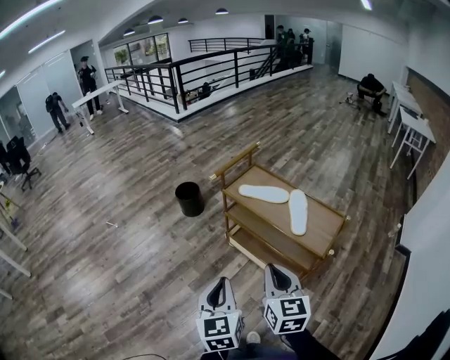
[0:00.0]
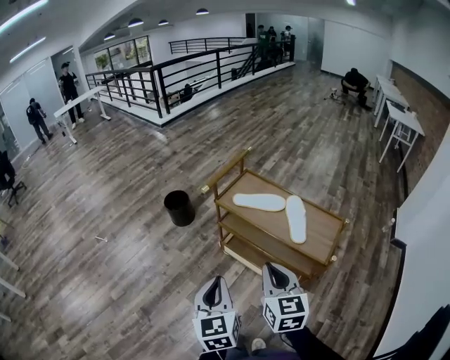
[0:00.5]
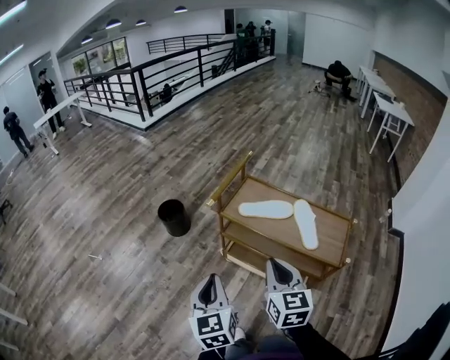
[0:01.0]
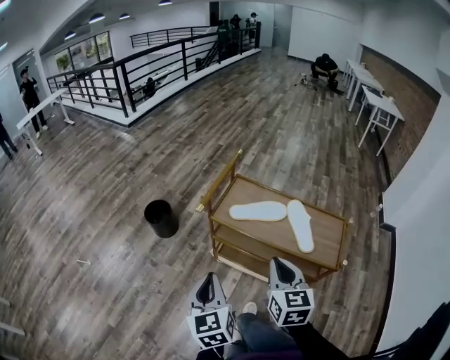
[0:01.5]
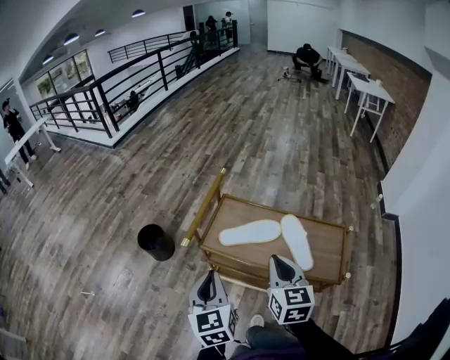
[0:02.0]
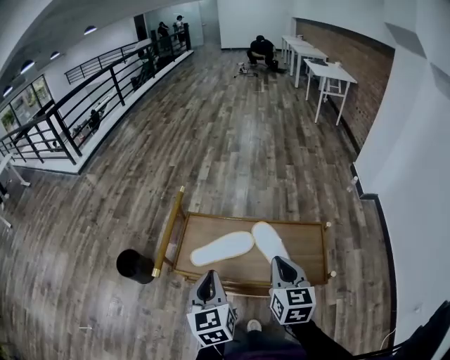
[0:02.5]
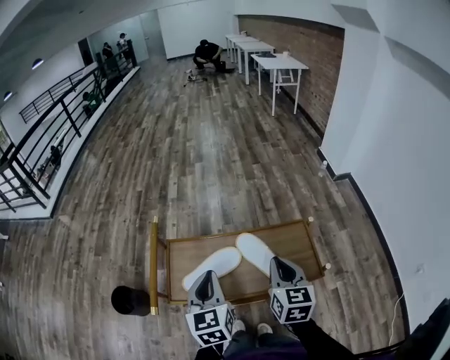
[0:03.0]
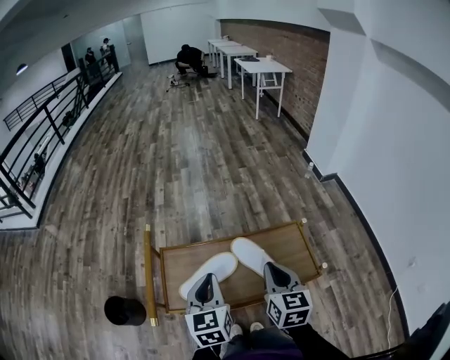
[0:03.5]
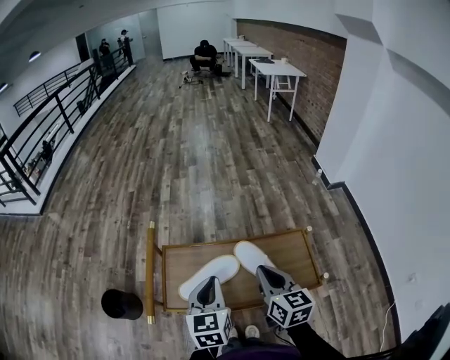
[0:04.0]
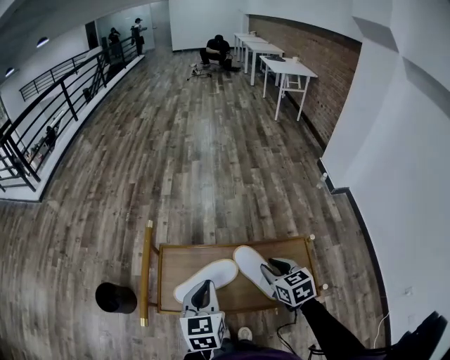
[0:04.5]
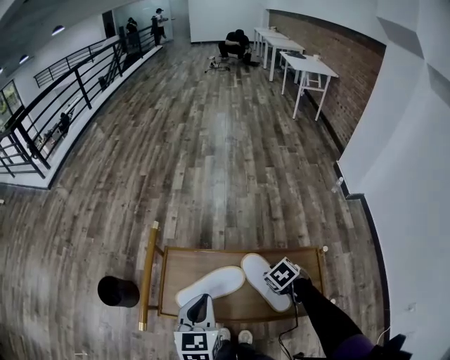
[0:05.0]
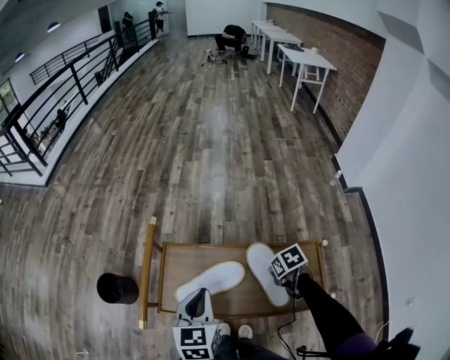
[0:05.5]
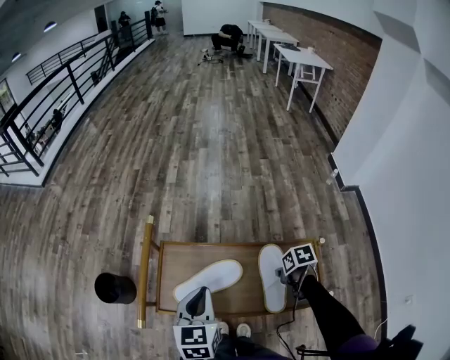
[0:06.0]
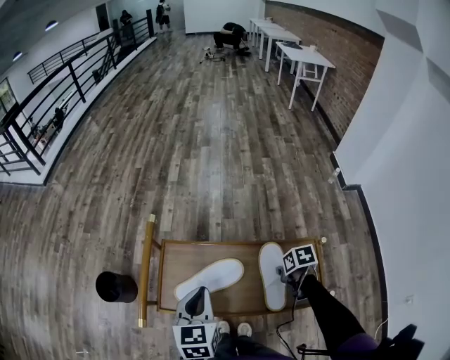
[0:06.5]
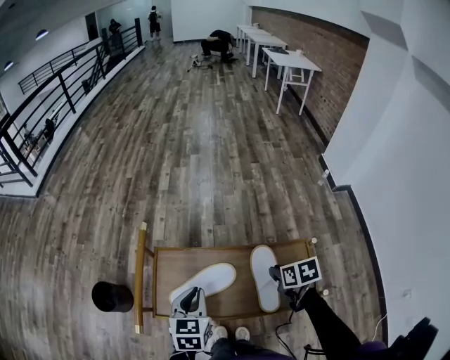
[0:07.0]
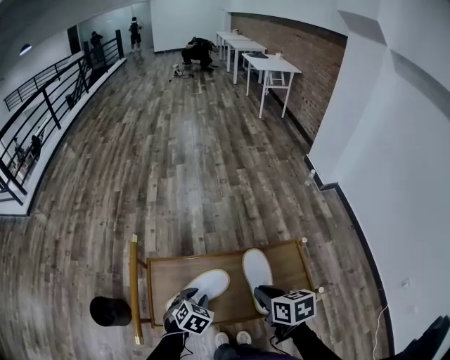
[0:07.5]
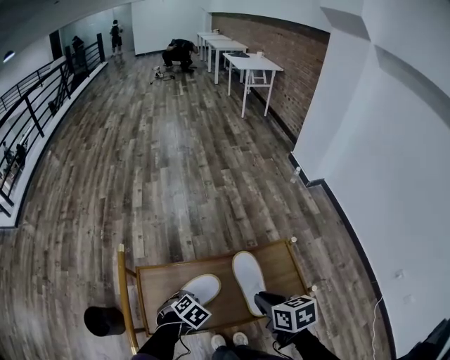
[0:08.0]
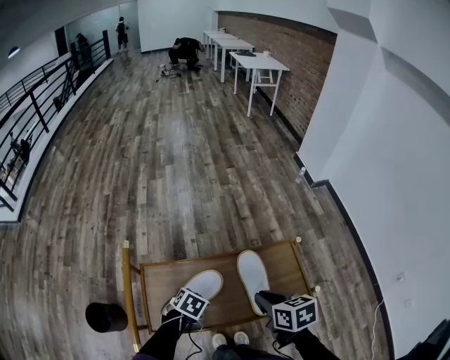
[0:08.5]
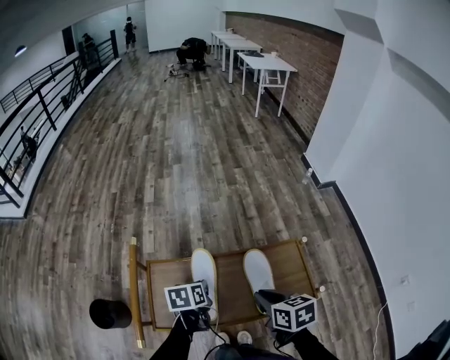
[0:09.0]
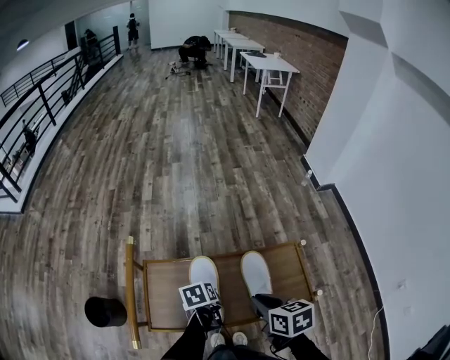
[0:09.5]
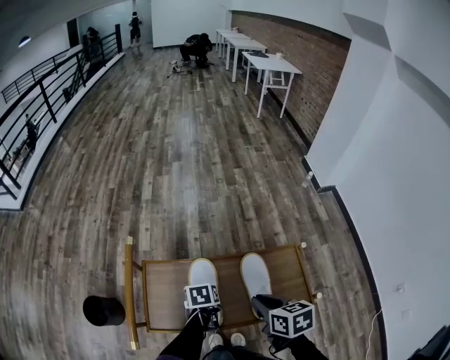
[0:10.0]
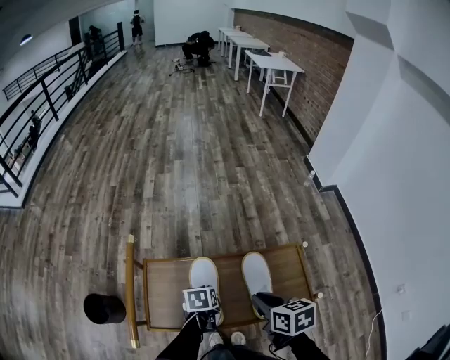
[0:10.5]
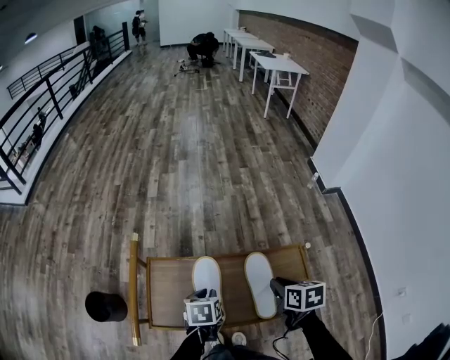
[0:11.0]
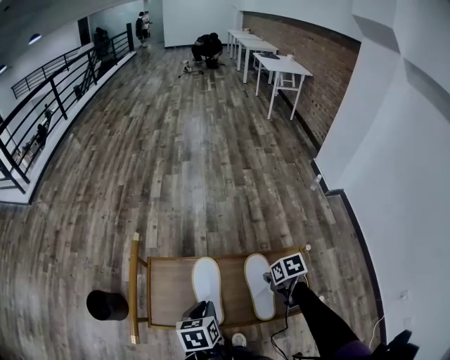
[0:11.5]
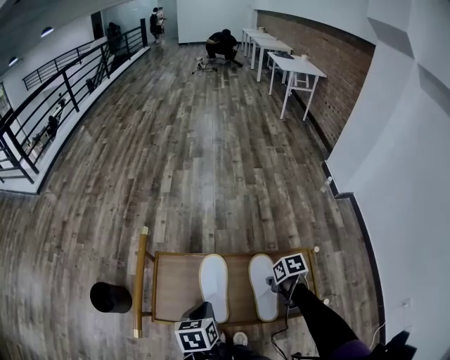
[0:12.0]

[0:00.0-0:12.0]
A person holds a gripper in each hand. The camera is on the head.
0:00.0 to 0:02.0: The two grippers go roughly 35 cm forward. The right gripper changes its angle by roughly 20 degrees.
0:02.0 to 0:04.0: The right gripper ends up about 15 cm from where it was, and rotates some 20 degrees; the left gripper shifts by roughly 20 cm, and changes its angle by some 30 degrees.
0:04.0 to 0:06.0: The right gripper travels downward by about 20 cm, and angles its fingers downward, by some 50 degrees.
0:06.0 to 0:08.0: The left gripper is displaced downward by approximately 20 cm, and tilts its fingers approximately 40 degrees downward. The right gripper heads upward, covering roughly 15 cm, and turns by some 30 degrees.
0:08.0 to 0:10.0: The left gripper goes upward and returns, approximately 10 cm each way, and twists roughly 60 degrees counterclockwise, seen from behind.
0:10.0 to 0:12.0: The right gripper shifts some 15 cm downward, and rotates about 30 degrees, while the left gripper shifts about 10 cm upward.

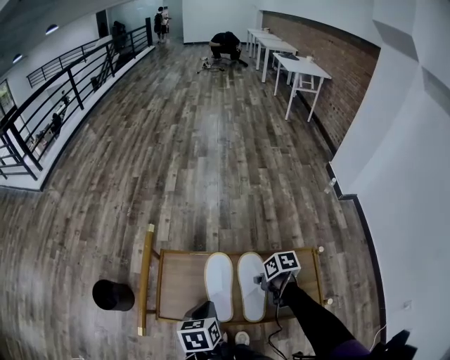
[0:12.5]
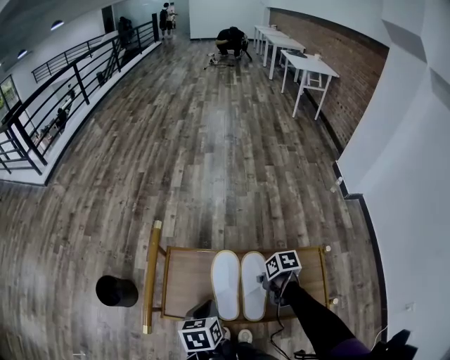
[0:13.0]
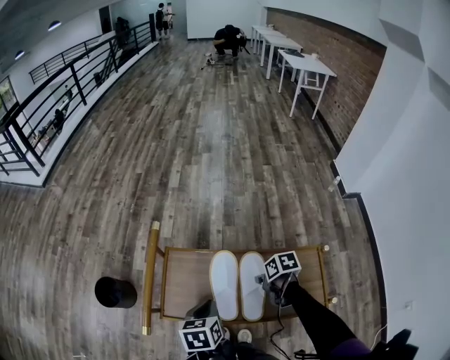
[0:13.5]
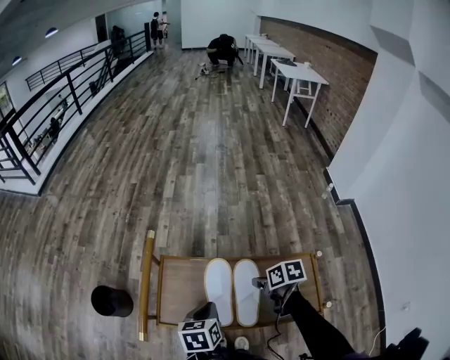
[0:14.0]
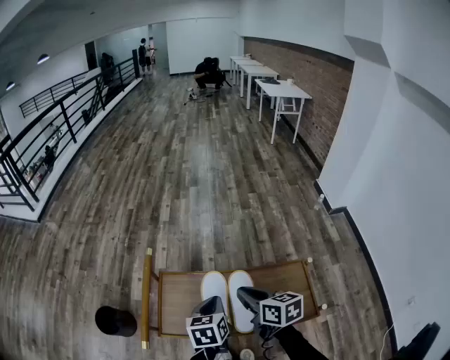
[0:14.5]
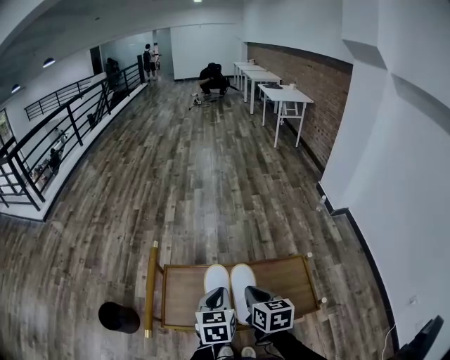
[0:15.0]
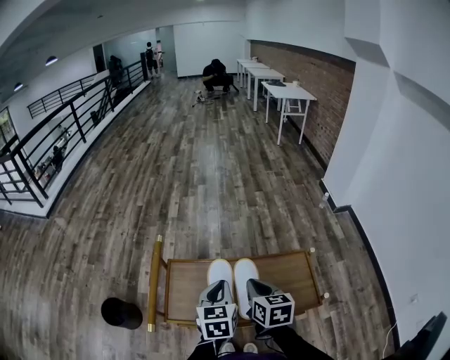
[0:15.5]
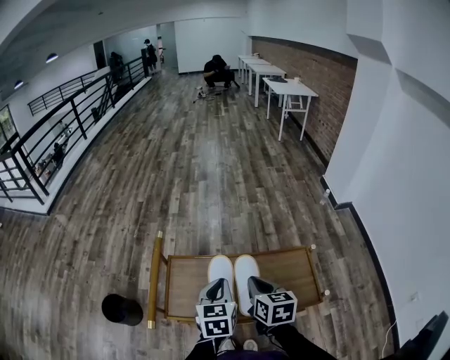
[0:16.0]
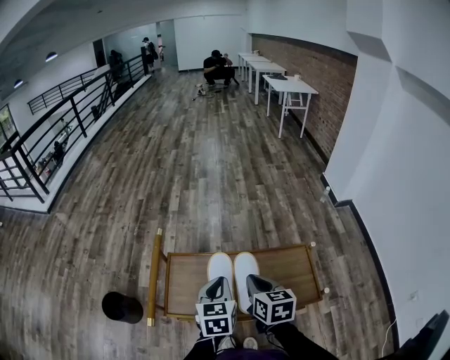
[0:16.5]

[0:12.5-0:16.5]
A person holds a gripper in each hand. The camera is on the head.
0:12.5 to 0:14.5: The left gripper goes about 5 cm upward and to the right, while the right gripper travels upward by approximately 20 cm, and tilts its fingers approximately 30 degrees upward.

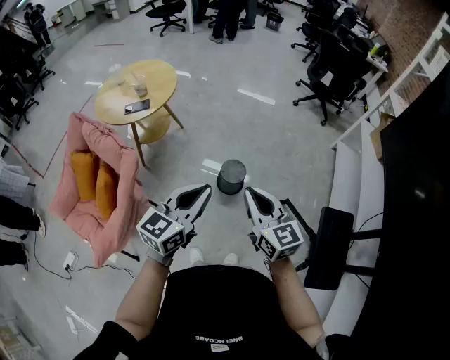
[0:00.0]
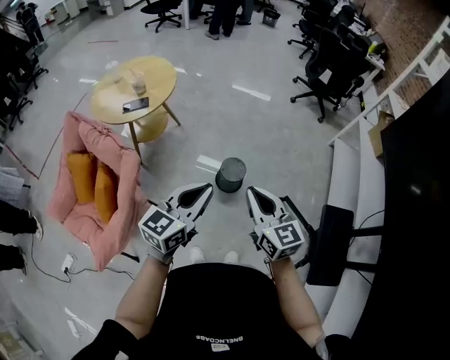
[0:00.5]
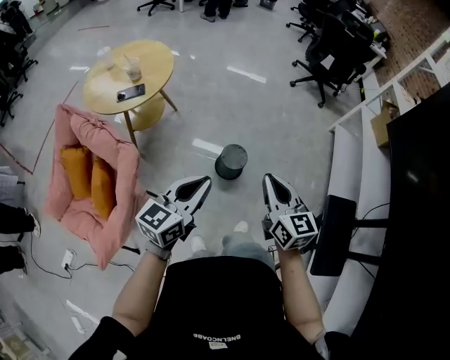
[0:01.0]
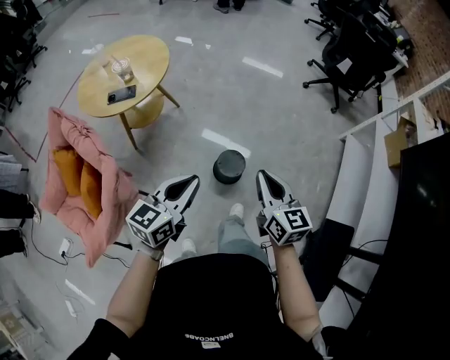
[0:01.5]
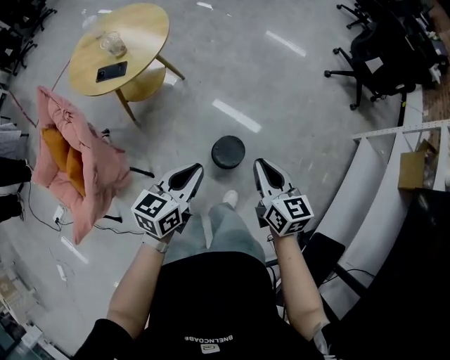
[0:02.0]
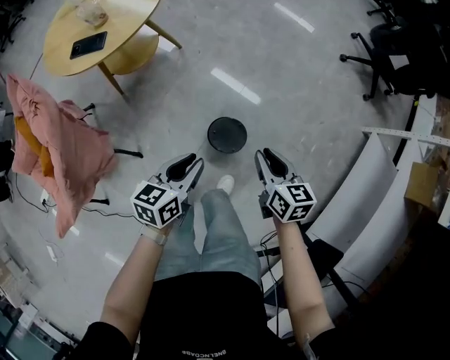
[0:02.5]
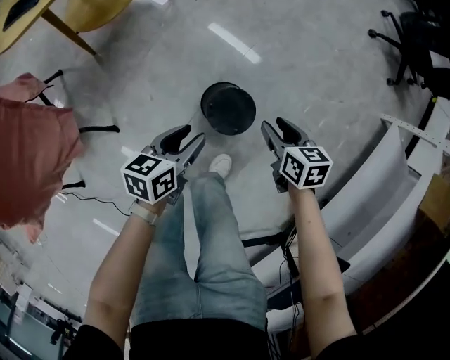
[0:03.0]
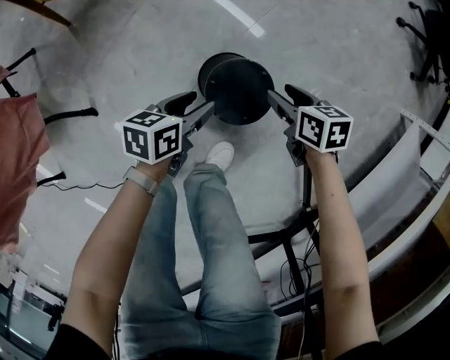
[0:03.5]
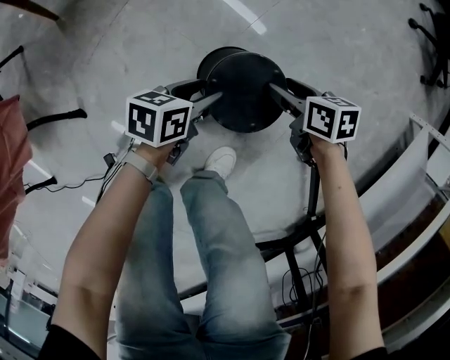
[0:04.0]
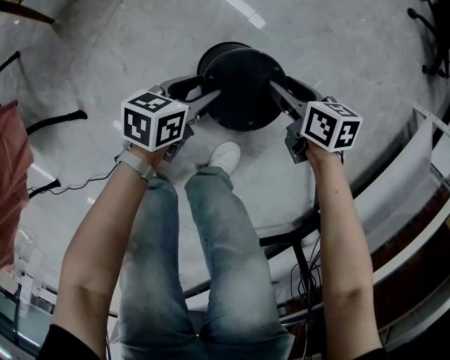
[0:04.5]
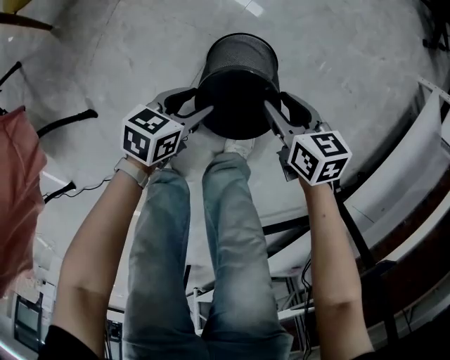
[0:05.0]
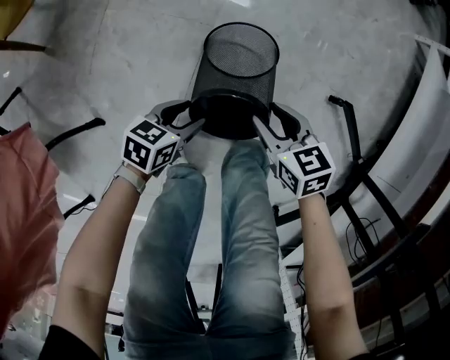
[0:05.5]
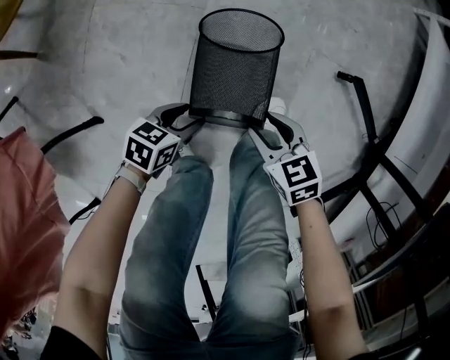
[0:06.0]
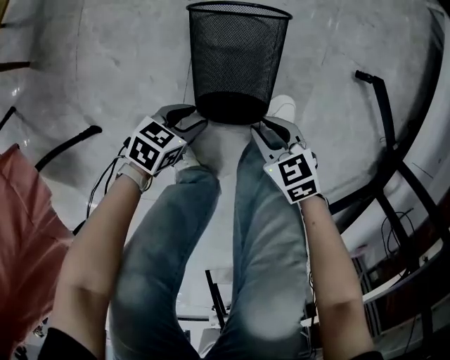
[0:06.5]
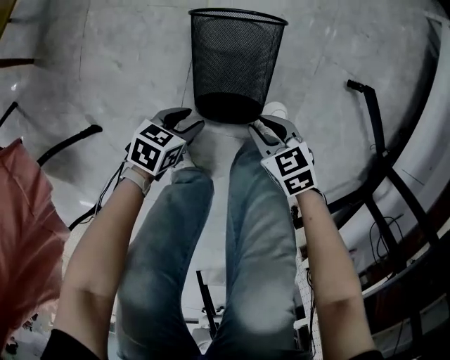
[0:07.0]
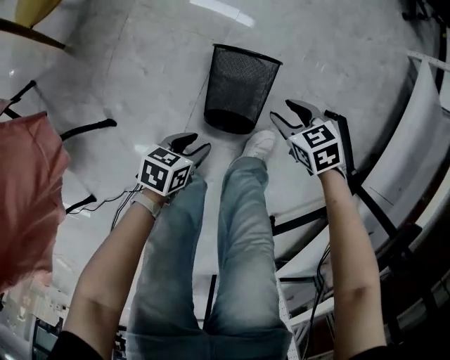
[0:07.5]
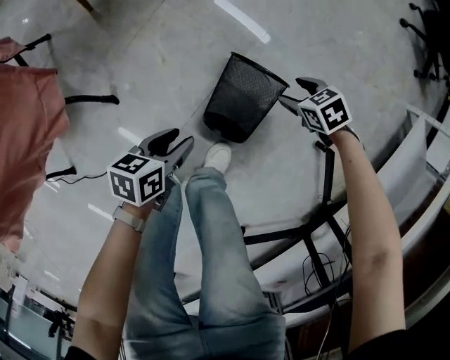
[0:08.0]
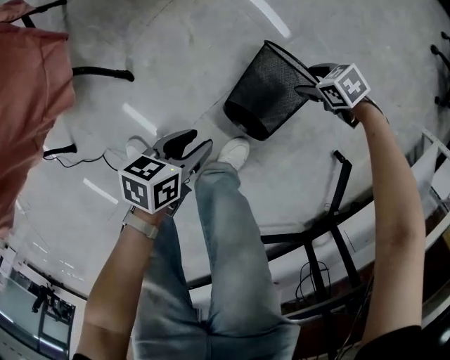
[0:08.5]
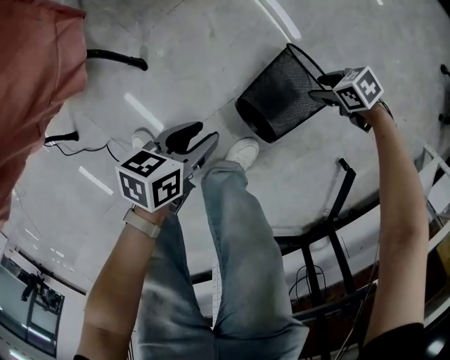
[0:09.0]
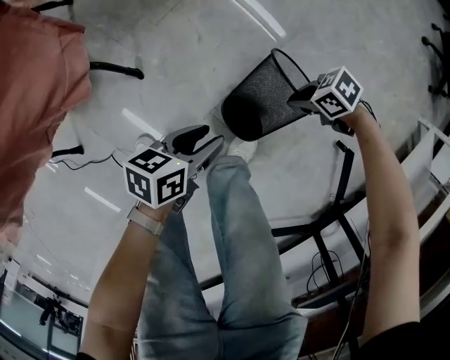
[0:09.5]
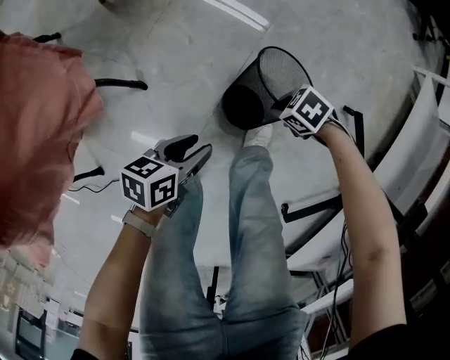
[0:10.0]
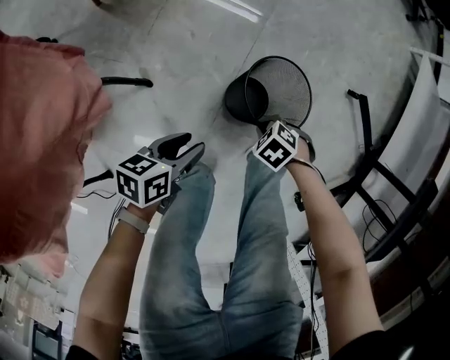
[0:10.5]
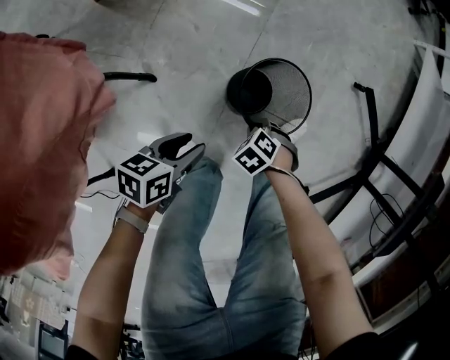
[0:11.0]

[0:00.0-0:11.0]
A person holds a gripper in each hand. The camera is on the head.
0:00.0 to 0:02.0: Both grippers move forward and downward, some 30 cm. The left gripper rotates some 30 degrees.
0:02.0 to 0:03.5: Both grippers travel together downward, some 60 cm. The right gripper points its fingers roughly 30 degrees further downward, and opens. Meanwhile the left gripper rotates roughly 30 degrees, and opens.
0:03.5 to 0:05.5: The left gripper changes place by some 15 cm, and turns by some 40 degrees, while the right gripper travels downward and back again, some 10 cm each way.
0:05.5 to 0:07.5: The left gripper reaches roughly 10 cm downward, then returns. The right gripper reaches about 10 cm downward, then returns, and swivels about 20 degrees.
0:07.5 to 0:09.0: The right gripper shifts by about 20 cm, and turns by about 50 degrees. The left gripper moves roughly 15 cm, and turns by roughly 40 degrees.
0:09.0 to 0:11.0: The left gripper shifts by about 15 cm, and rotates roughly 30 degrees. Meanwhile the right gripper changes place by approximately 35 cm, turns by approximately 40 degrees, and closes its fingers.
